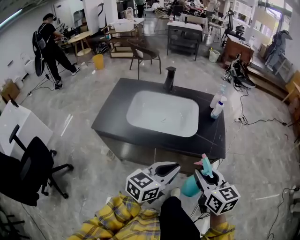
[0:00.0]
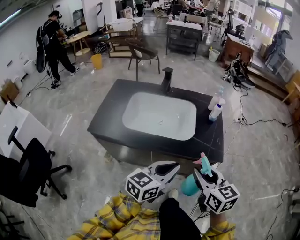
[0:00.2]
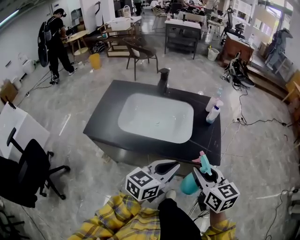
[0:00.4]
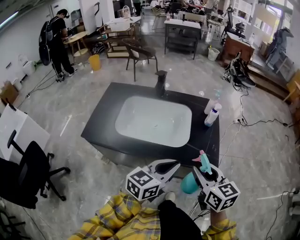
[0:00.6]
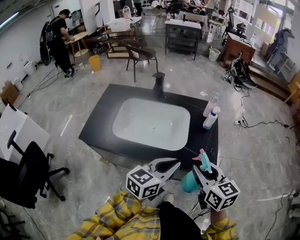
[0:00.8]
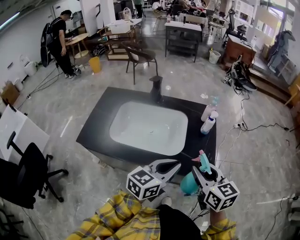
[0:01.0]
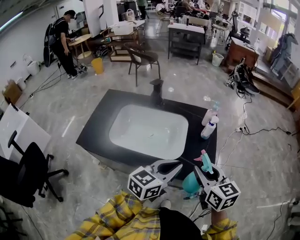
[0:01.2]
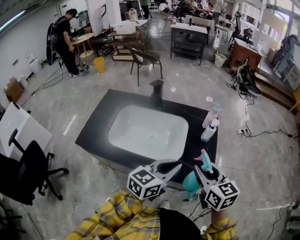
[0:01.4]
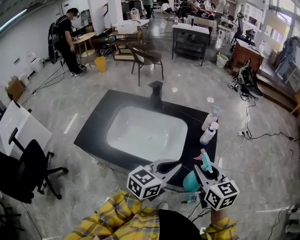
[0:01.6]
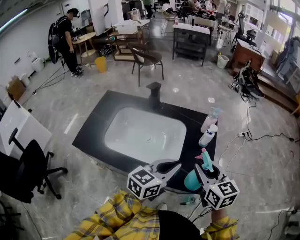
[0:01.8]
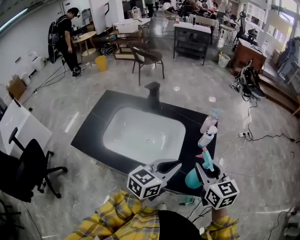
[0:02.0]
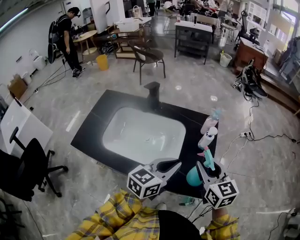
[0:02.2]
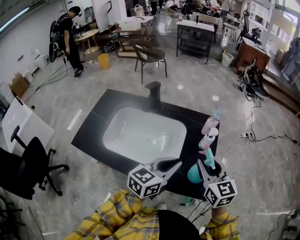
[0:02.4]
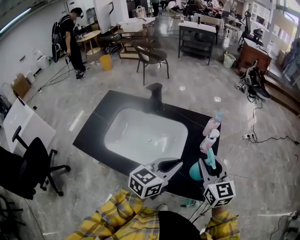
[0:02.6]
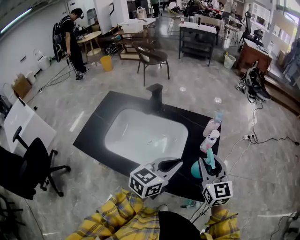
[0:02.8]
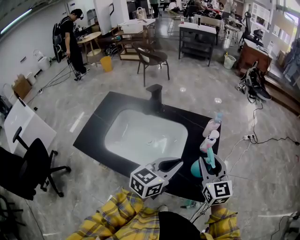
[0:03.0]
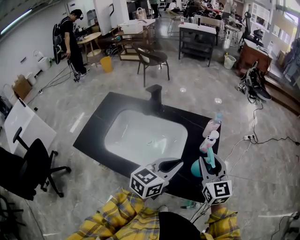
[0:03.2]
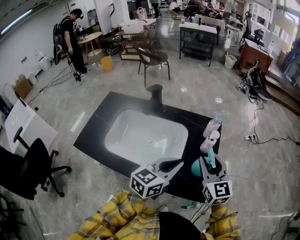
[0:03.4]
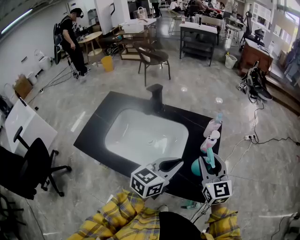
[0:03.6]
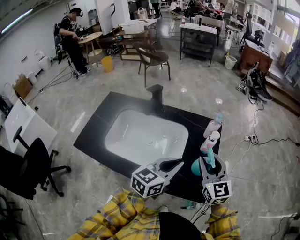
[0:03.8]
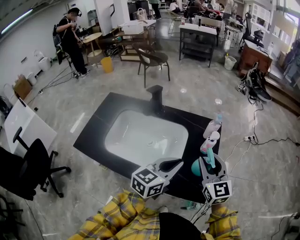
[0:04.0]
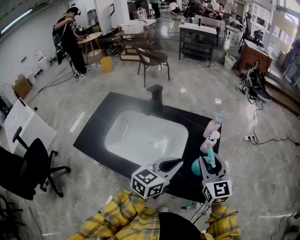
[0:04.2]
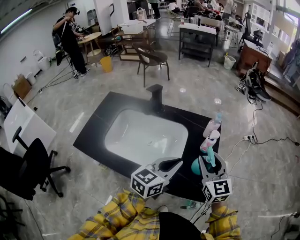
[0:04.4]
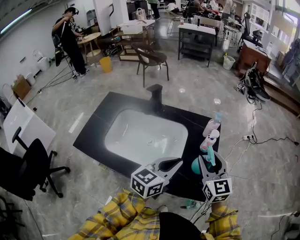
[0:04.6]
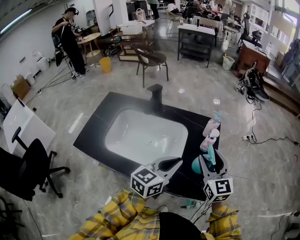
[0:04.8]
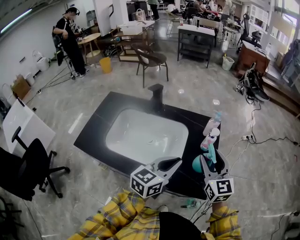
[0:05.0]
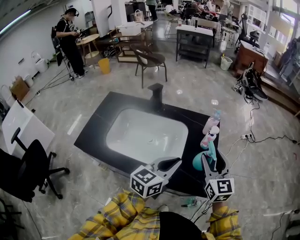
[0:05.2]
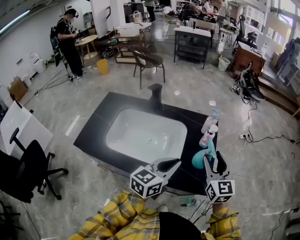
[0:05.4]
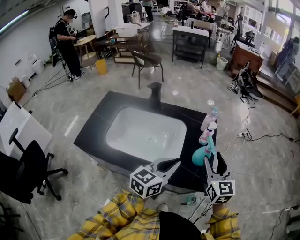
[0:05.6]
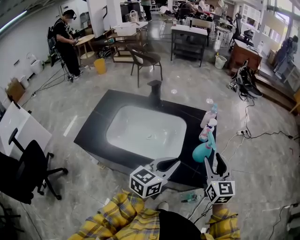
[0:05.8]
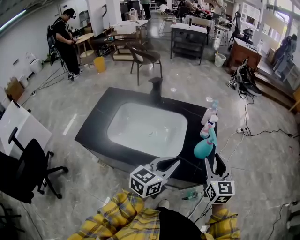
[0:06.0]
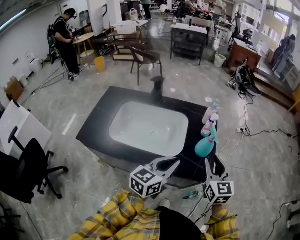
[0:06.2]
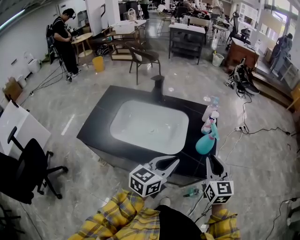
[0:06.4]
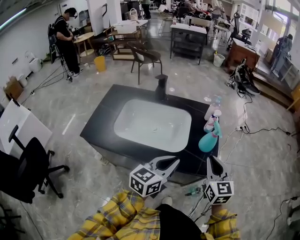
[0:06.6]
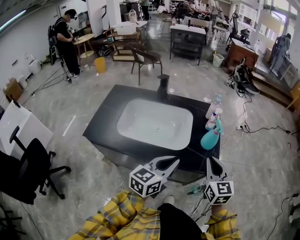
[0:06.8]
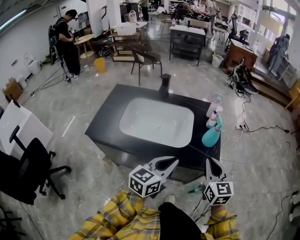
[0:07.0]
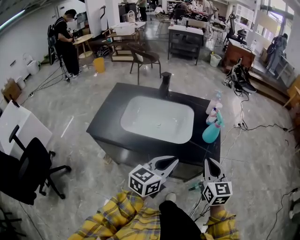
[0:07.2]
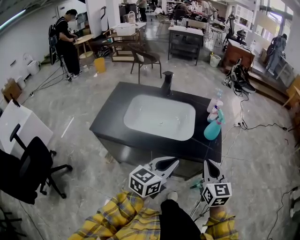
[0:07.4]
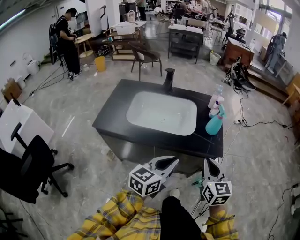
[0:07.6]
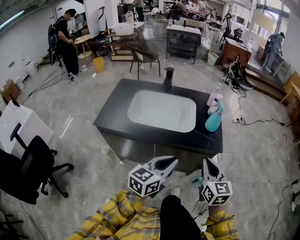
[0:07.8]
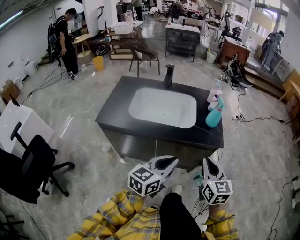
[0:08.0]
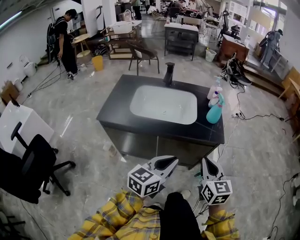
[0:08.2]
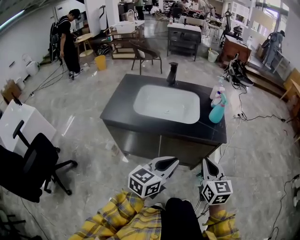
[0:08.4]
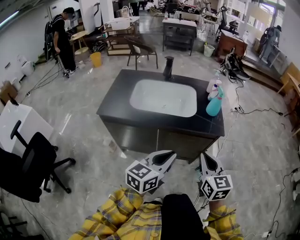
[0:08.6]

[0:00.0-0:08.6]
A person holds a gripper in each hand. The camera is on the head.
0:00.0 to 0:01.4: The right gripper shifts about 20 cm forward. The left gripper is displaced forward and to the right by some 20 cm.
0:01.4 to 0:02.8: The grippers both shift forward by some 10 cm.
0:02.8 to 0:04.4: Both grippers stay put.
0:04.4 to 0:05.8: The two grippers go about 5 cm backward.
0:05.8 to 0:07.2: The two grippers go some 15 cm backward. The right gripper closes up.
0:07.2 to 0:08.6: The two grippers go about 15 cm backward.

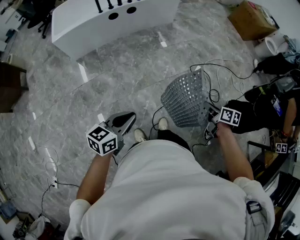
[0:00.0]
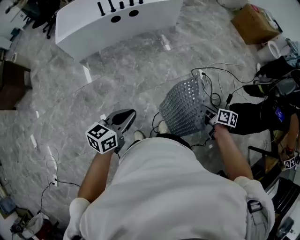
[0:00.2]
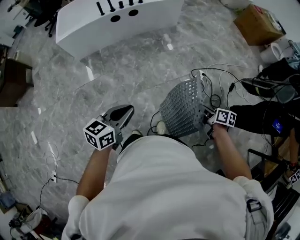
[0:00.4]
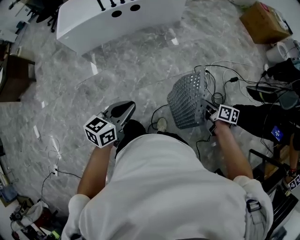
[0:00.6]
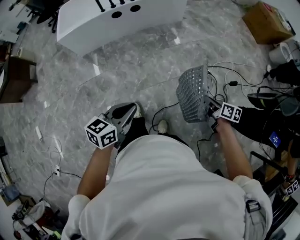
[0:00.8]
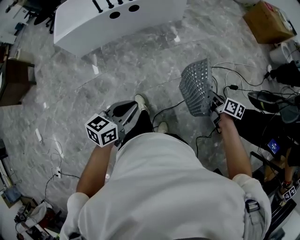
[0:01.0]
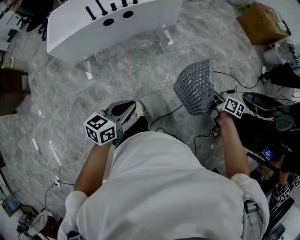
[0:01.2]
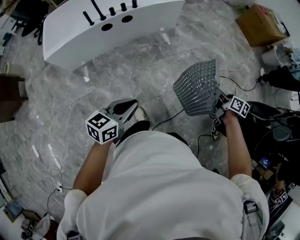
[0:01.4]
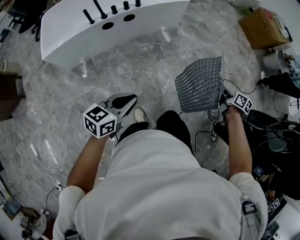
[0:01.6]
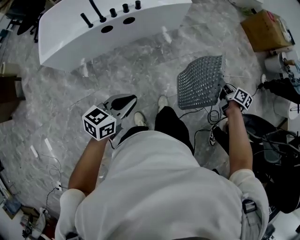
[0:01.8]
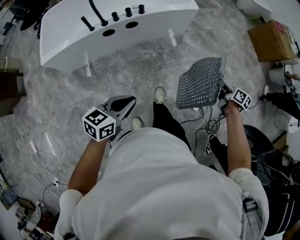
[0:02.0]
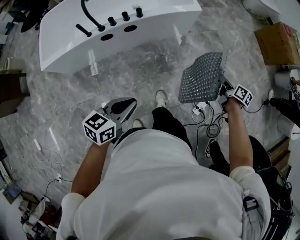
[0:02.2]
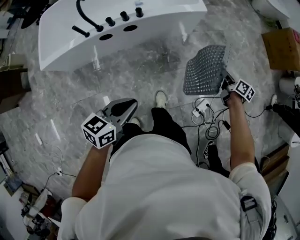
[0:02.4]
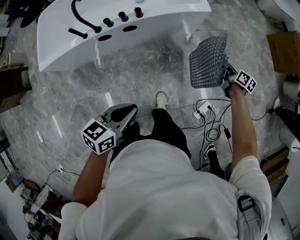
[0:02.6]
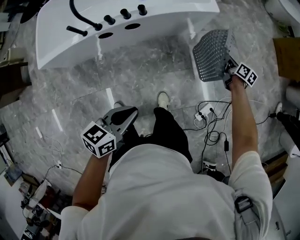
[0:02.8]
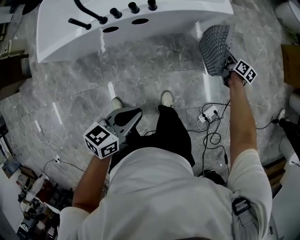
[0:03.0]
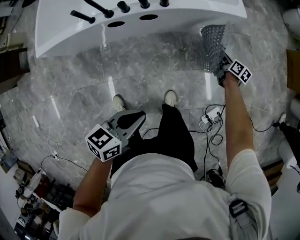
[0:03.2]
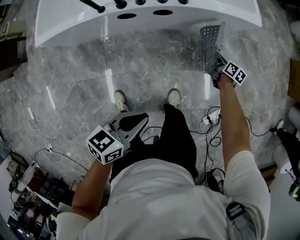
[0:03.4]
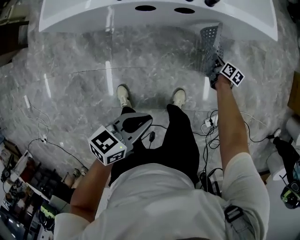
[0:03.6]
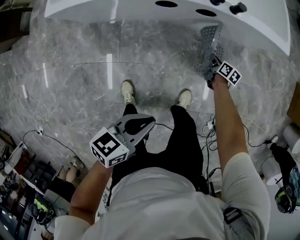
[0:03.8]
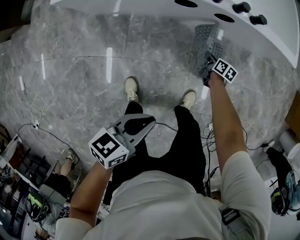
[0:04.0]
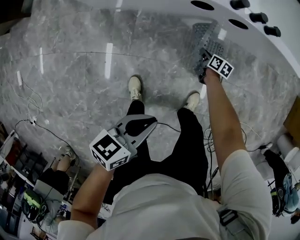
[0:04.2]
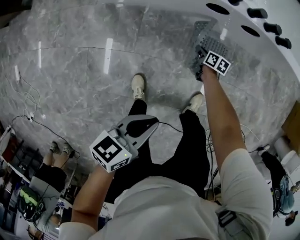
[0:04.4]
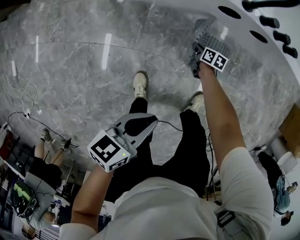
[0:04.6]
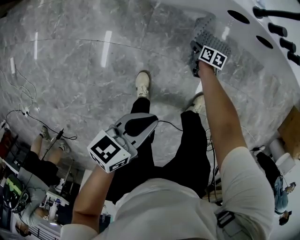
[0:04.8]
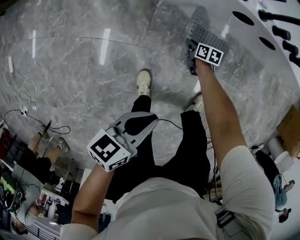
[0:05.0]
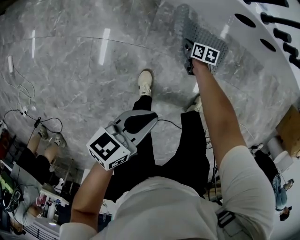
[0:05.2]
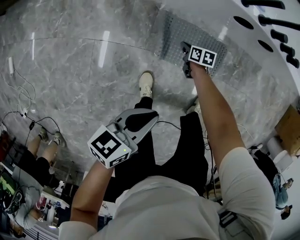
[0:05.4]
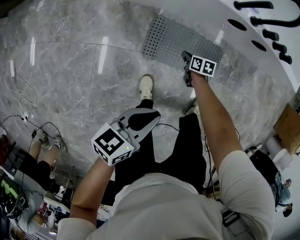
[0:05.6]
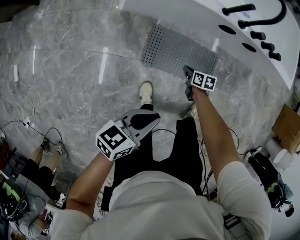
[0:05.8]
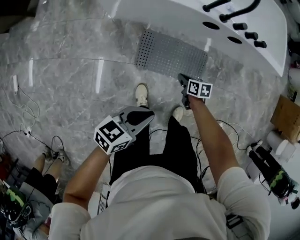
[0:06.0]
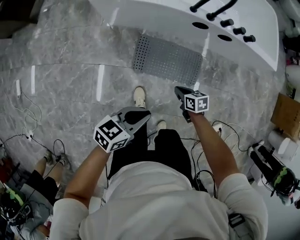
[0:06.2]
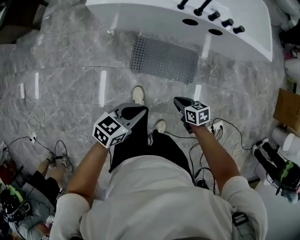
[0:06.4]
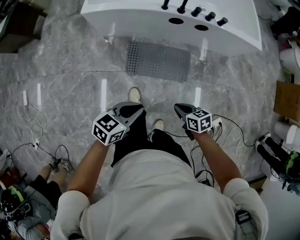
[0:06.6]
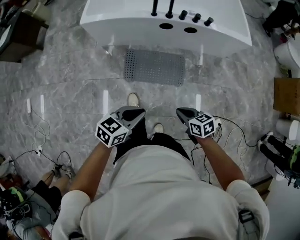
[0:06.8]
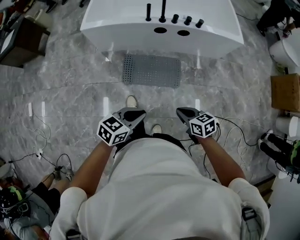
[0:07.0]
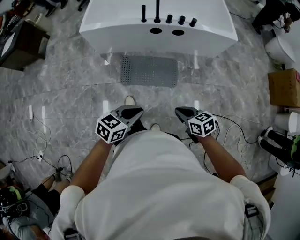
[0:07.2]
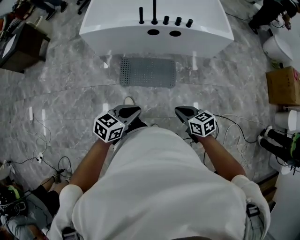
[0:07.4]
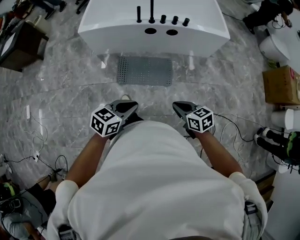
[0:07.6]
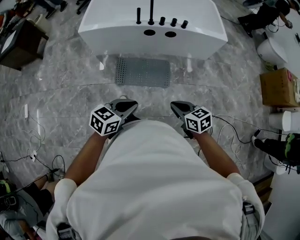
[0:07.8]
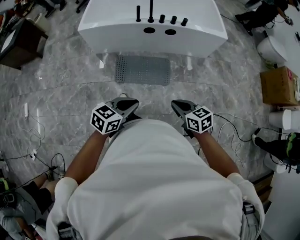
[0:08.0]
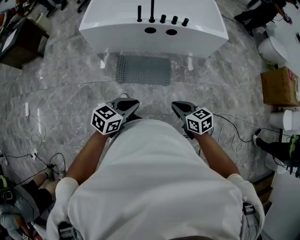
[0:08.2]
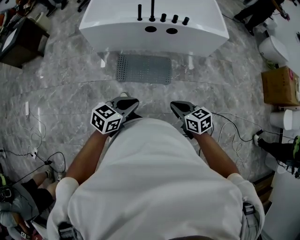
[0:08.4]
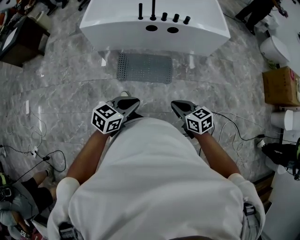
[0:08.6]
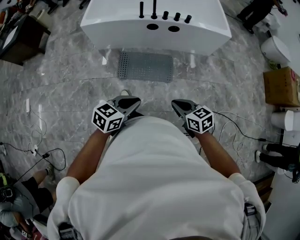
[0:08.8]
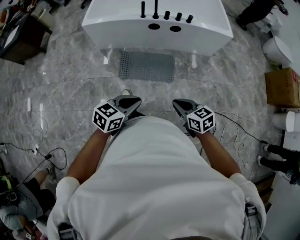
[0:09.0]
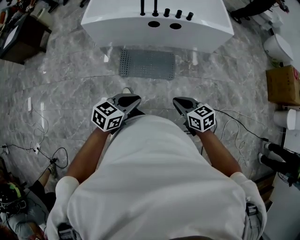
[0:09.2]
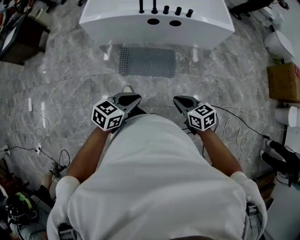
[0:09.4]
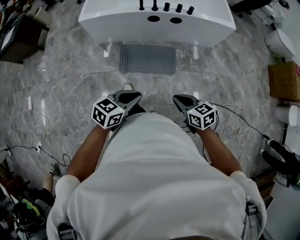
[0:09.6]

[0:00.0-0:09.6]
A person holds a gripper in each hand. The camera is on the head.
0:00.0 to 0:01.6: The grippers both shift forward by some 35 cm.
0:01.6 to 0:03.2: The left gripper is displaced forward and downward by about 30 cm, and turns by approximately 20 degrees. Meanwhile the right gripper goes roughly 60 cm forward, downward and to the left.
0:03.2 to 0:04.8: The right gripper moves about 70 cm, and swivels roughly 40 degrees. The left gripper moves approximately 40 cm, and changes its angle by approximately 20 degrees.
0:04.8 to 0:06.4: The left gripper heads upward, covering some 10 cm, and turns by about 20 degrees. Meanwhile the right gripper is displaced upward by some 30 cm, and turns by roughly 20 degrees.
0:06.4 to 0:08.0: The right gripper heads upward, backward and to the right, covering about 35 cm, and turns by roughly 20 degrees; the left gripper is displaced backward, to the right and upward by about 25 cm.
0:08.0 to 0:09.6: The grippers stay close to where they were, moving slightly.

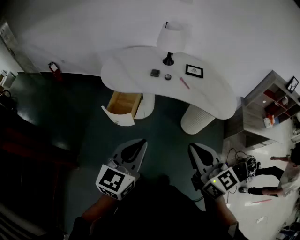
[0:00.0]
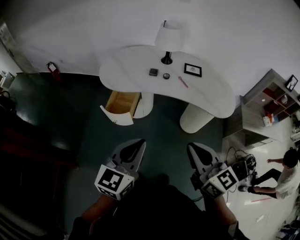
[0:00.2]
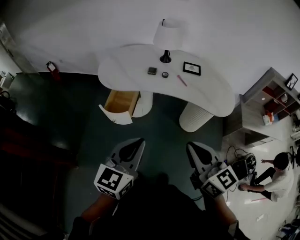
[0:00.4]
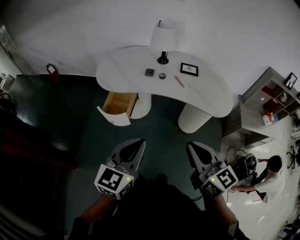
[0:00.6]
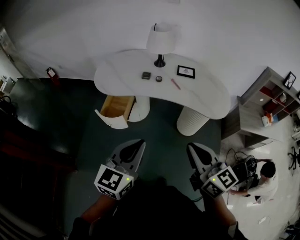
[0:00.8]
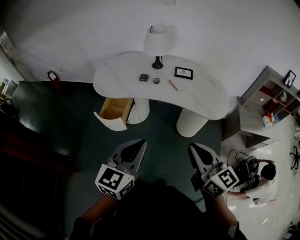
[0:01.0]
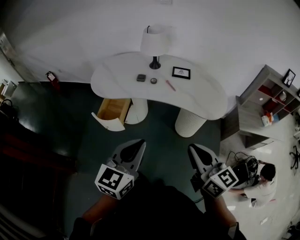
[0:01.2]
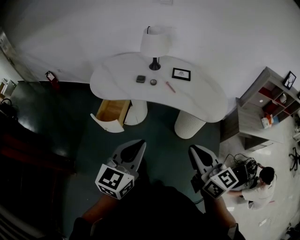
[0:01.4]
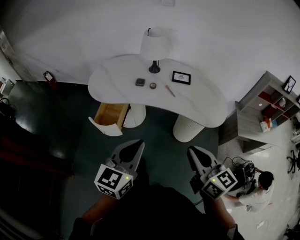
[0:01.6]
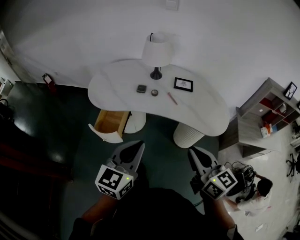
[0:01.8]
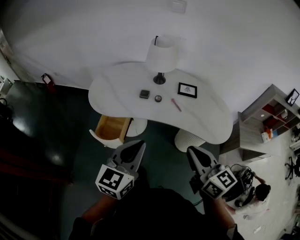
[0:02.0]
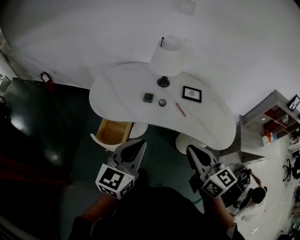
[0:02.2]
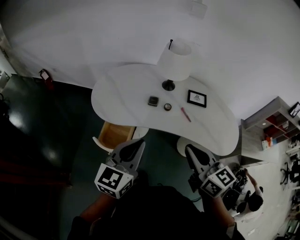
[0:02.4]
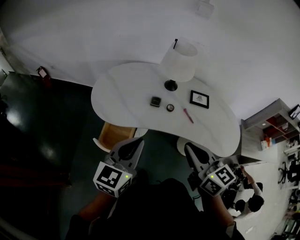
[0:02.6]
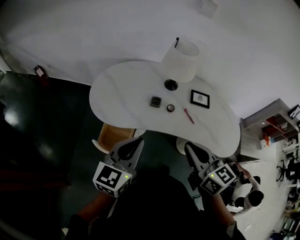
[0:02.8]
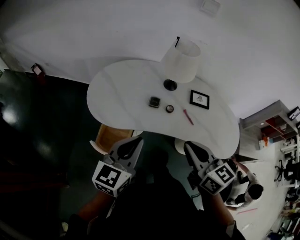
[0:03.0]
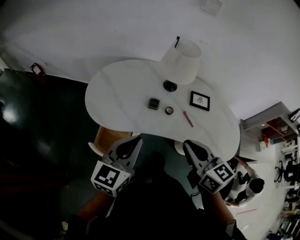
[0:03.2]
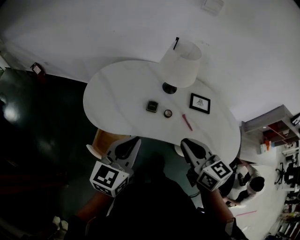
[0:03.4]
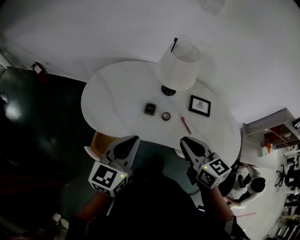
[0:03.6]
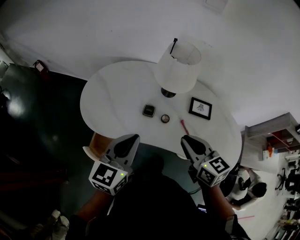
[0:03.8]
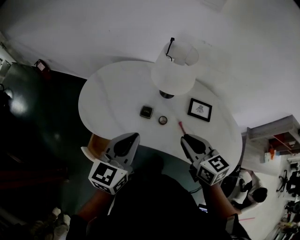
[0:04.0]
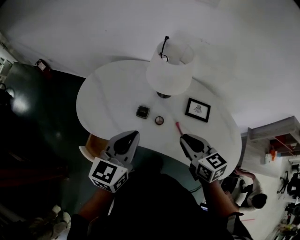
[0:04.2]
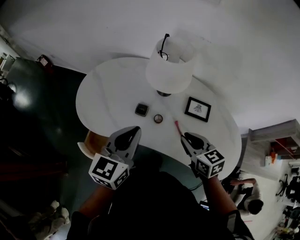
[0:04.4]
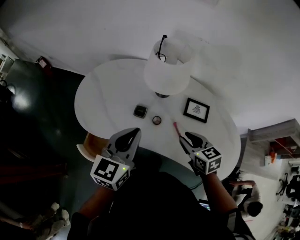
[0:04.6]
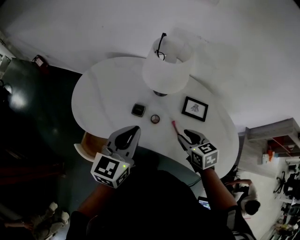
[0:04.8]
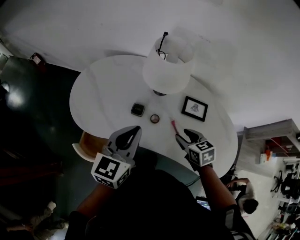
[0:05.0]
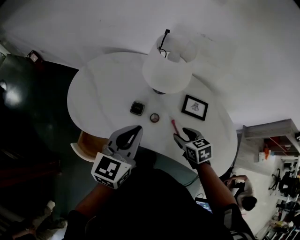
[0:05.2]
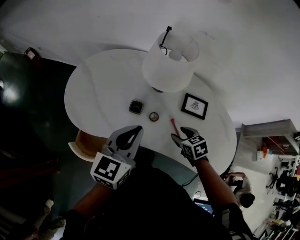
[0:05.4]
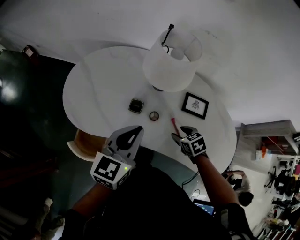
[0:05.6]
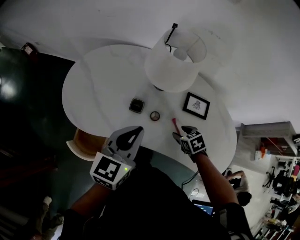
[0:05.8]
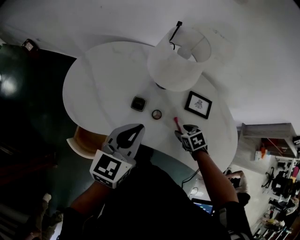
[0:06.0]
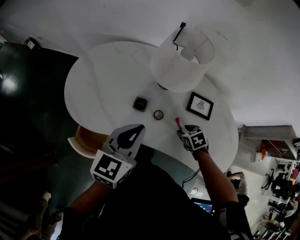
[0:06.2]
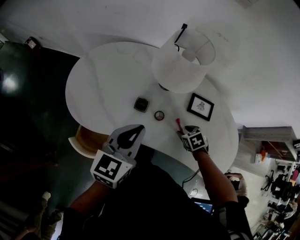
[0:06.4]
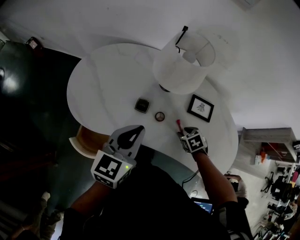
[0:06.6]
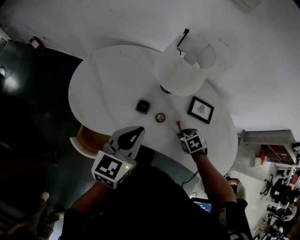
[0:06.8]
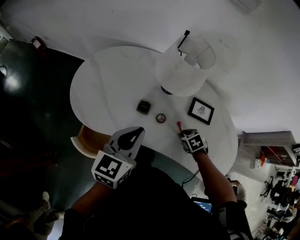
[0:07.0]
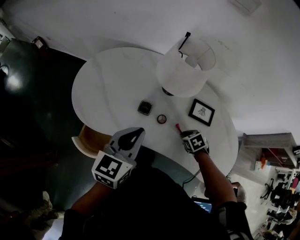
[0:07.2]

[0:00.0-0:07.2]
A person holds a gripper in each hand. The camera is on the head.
0:00.0 to 0:01.4: The two grippers go roughly 10 cm to the right.
0:01.4 to 0:02.8: The two grippers go approximately 30 cm forward and to the left.
0:02.8 to 0:04.4: The left gripper is displaced forward and to the right by some 20 cm. The right gripper travels forward, to the right and downward by approximately 25 cm, and turns by about 20 degrees.
0:04.4 to 0:05.8: The left gripper shifts by about 5 cm. Meanwhile the right gripper goes roughly 20 cm downward, points its fingers about 40 degrees further downward, and opens its fingers.
0:05.8 to 0:07.2: The right gripper closes up.
